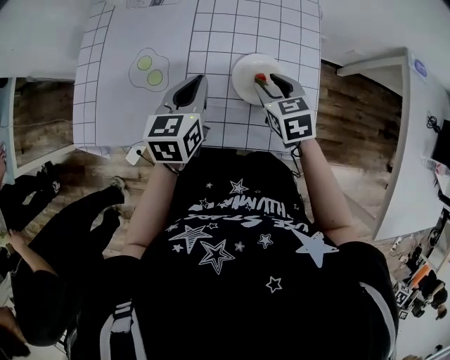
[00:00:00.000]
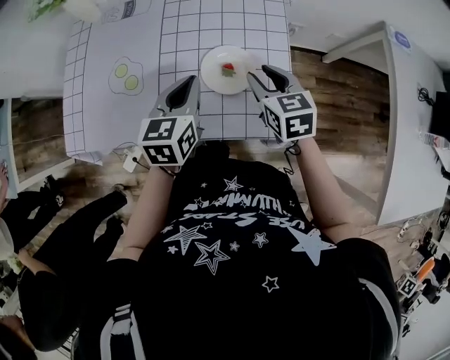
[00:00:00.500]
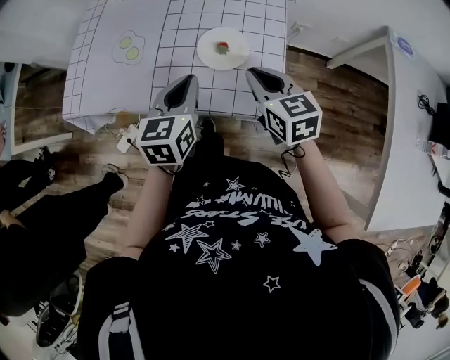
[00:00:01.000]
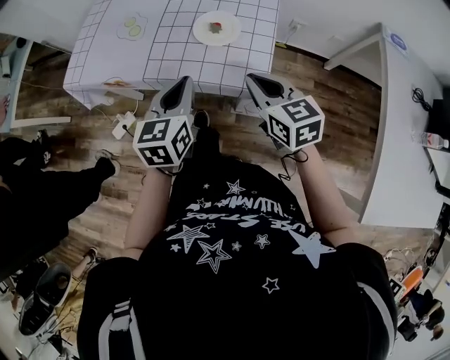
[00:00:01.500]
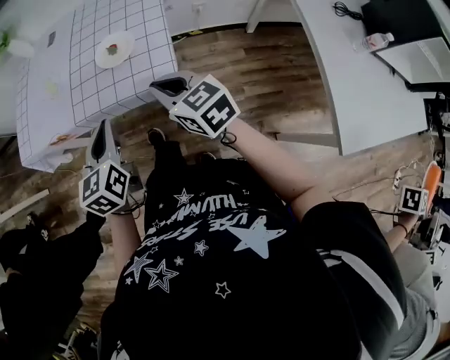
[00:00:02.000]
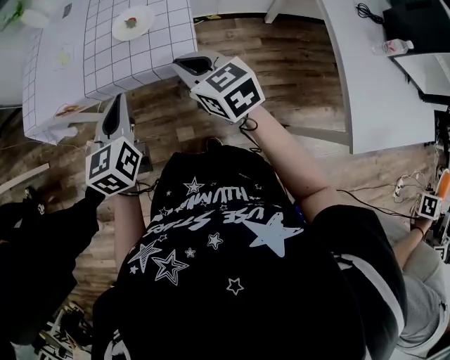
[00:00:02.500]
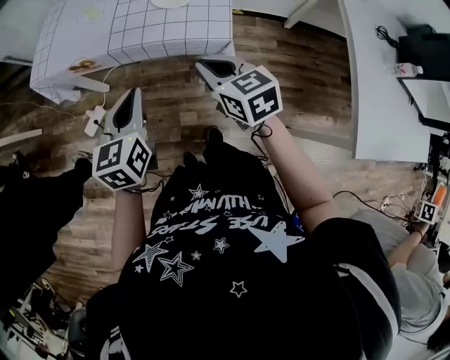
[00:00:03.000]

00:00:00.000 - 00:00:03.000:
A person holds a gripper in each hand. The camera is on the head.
00:00:00.000 - 00:00:01.500: The left gripper shifts about 20 cm backward; the right gripper is displaced backward and upward by about 25 cm, changes its angle by roughly 20 degrees, and closes up.
00:00:01.500 - 00:00:03.000: Both grippers move backward and to the left, some 15 cm.

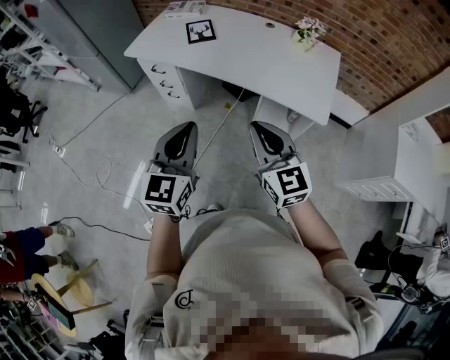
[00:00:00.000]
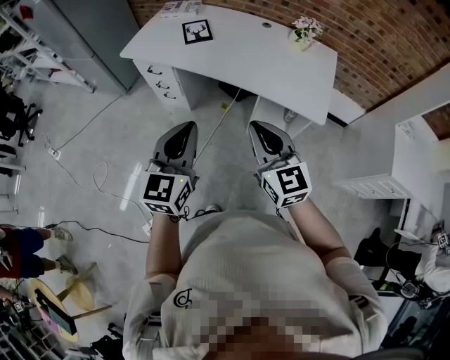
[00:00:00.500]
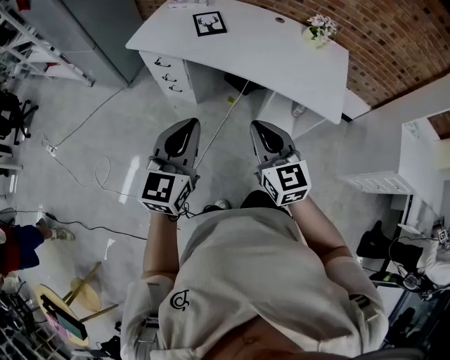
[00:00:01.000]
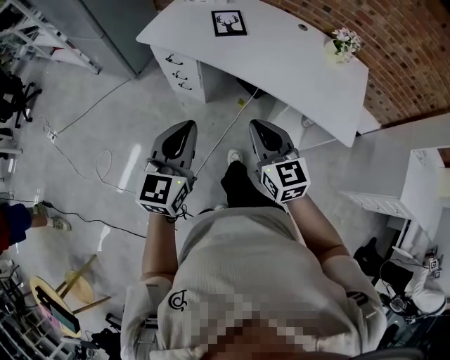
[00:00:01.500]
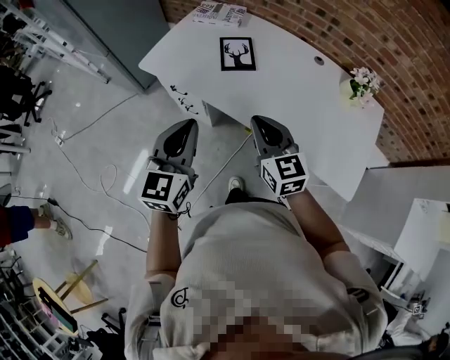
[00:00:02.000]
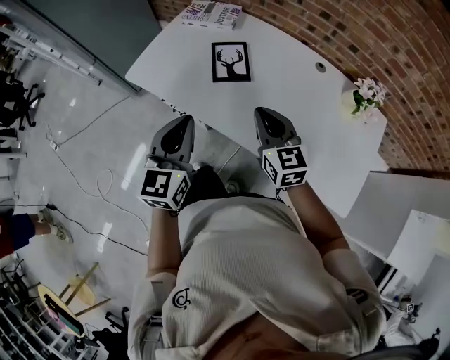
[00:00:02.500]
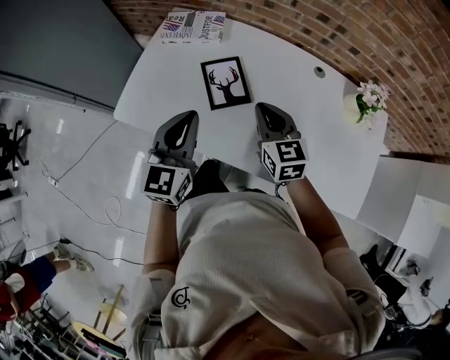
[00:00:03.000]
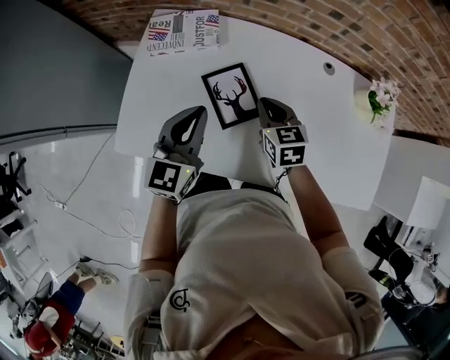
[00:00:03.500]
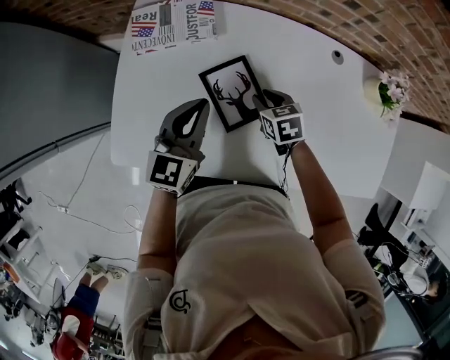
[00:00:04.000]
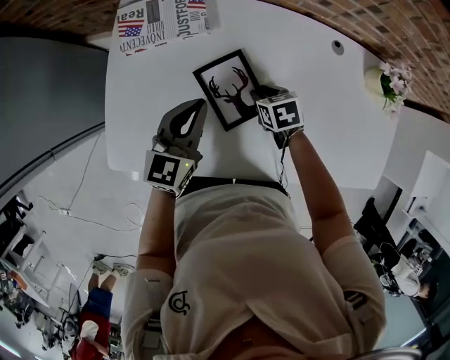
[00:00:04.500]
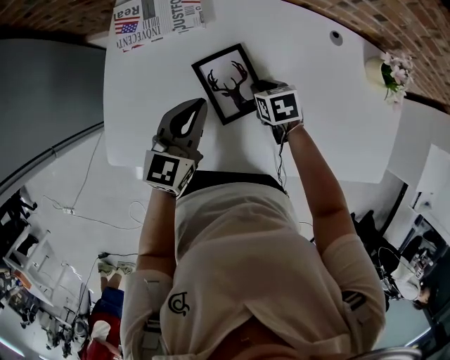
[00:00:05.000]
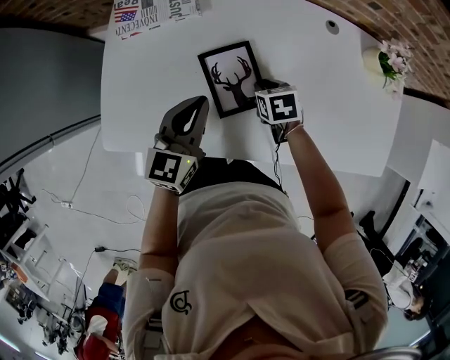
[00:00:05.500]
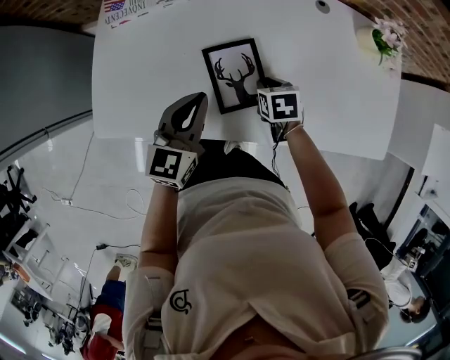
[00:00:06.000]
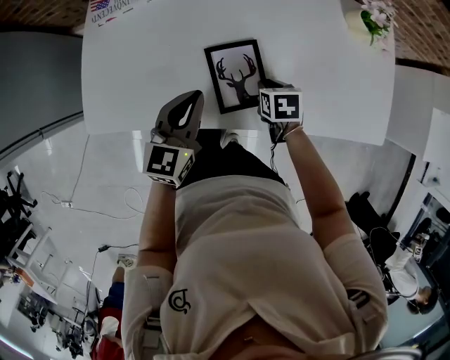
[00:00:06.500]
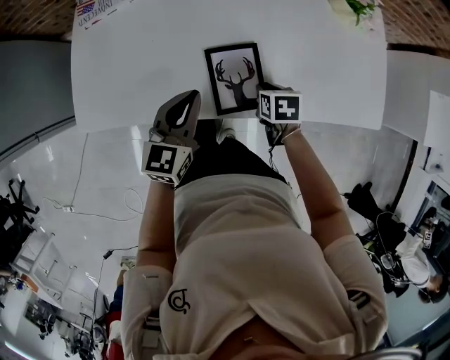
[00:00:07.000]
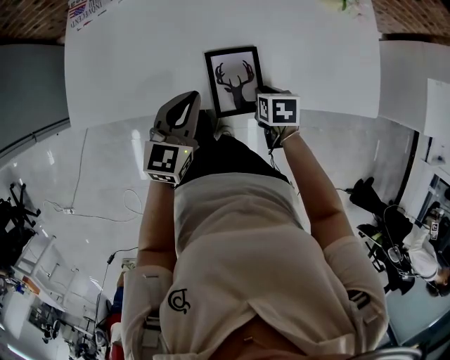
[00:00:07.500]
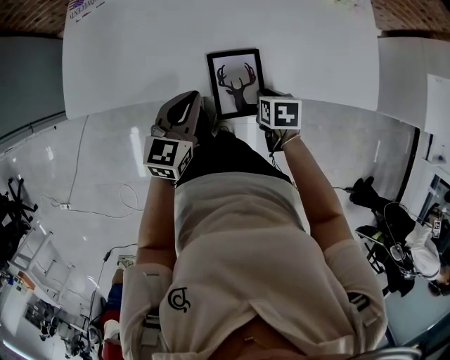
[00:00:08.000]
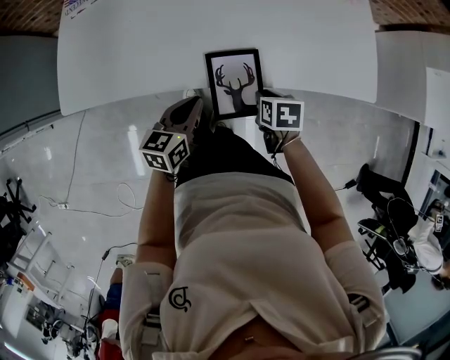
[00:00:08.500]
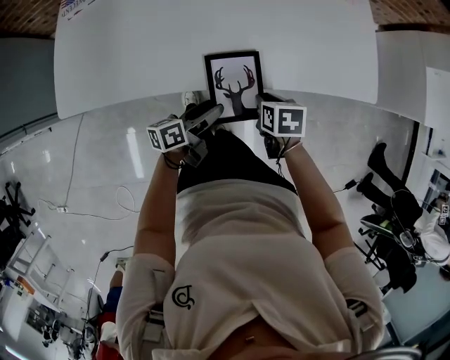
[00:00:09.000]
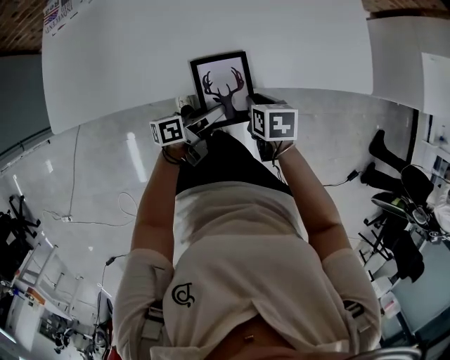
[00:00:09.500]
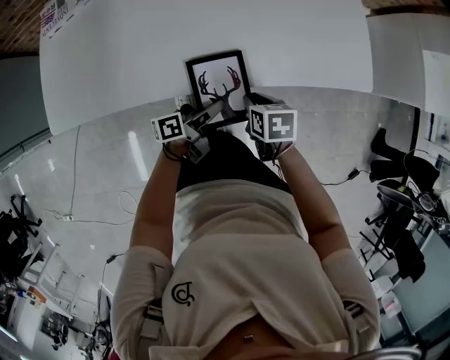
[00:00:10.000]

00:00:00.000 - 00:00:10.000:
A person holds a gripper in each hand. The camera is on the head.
00:00:00.000 - 00:00:02.000: The two grippers go roughly 30 cm forward.
00:00:02.000 - 00:00:04.000: The pair of grippers is taken forward, some 40 cm. The right gripper is displaced downward by about 25 cm, angles its fingers downward, by some 40 degrees, and opens its fingers. Meanwhile the left gripper rotates roughly 30 degrees.
00:00:04.000 - 00:00:06.000: The two grippers go some 15 cm backward and to the right.
00:00:06.000 - 00:00:08.000: Both grippers move backward and to the right, roughly 20 cm.
00:00:08.000 - 00:00:10.000: The left gripper travels to the right and downward by approximately 20 cm, rolls counterclockwise, seen from behind, by roughly 60 degrees, and opens and closes again.

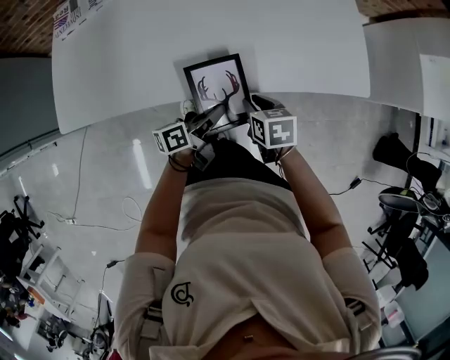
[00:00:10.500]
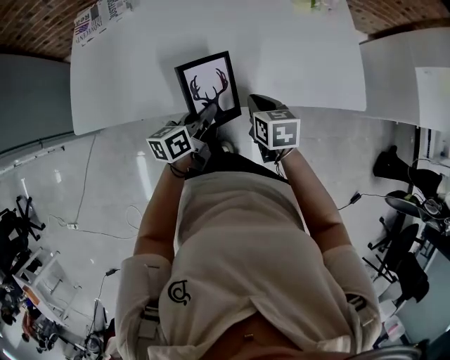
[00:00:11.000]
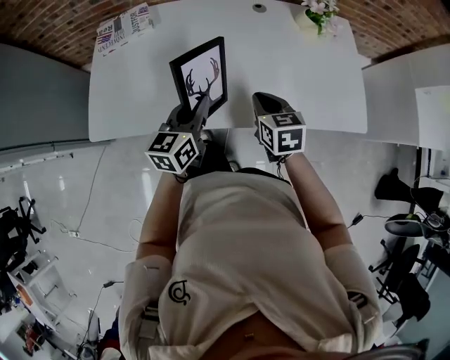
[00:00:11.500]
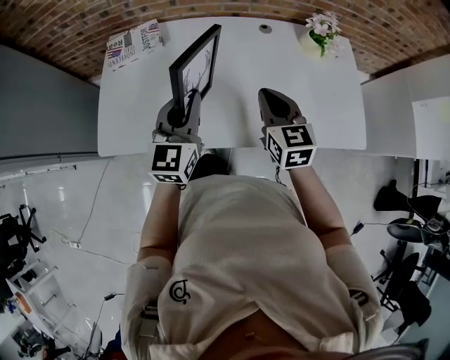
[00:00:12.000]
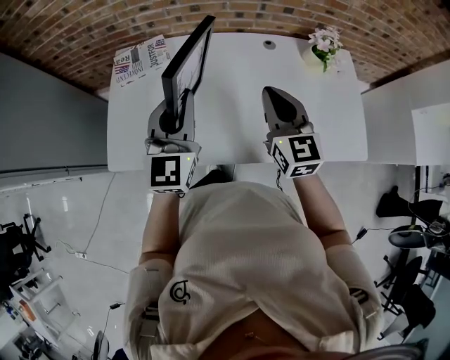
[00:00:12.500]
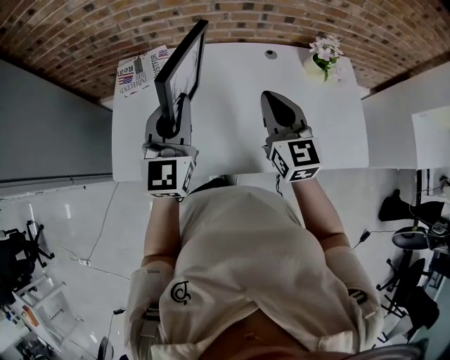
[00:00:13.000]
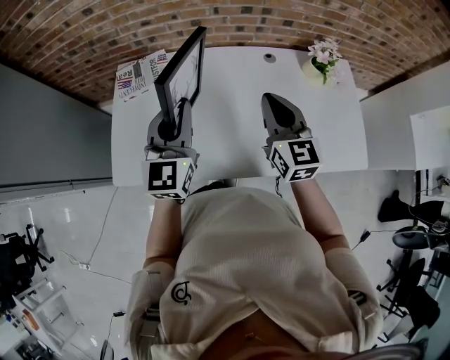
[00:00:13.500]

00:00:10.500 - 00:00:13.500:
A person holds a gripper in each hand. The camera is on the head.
00:00:10.500 - 00:00:12.000: The right gripper goes roughly 25 cm upward and forward, angles its fingers upward, by roughly 40 degrees, and closes; the left gripper shifts some 35 cm upward, to the left and forward, and twists about 70 degrees clockwise, seen from behind.
00:00:12.000 - 00:00:13.500: The left gripper travels upward, forward and to the left by roughly 10 cm; the right gripper travels upward and forward by roughly 10 cm.

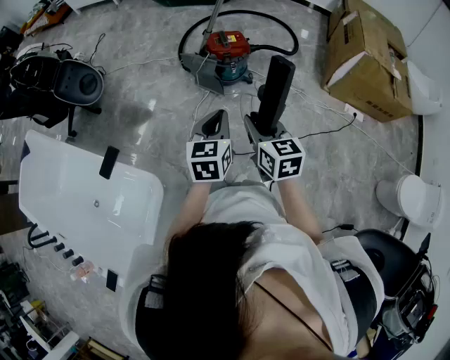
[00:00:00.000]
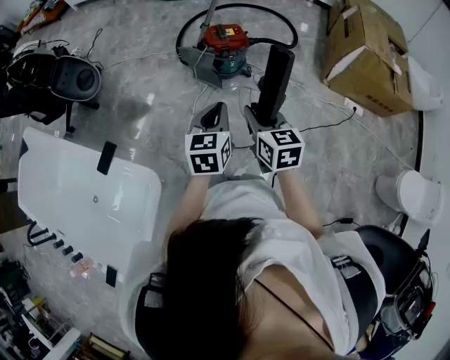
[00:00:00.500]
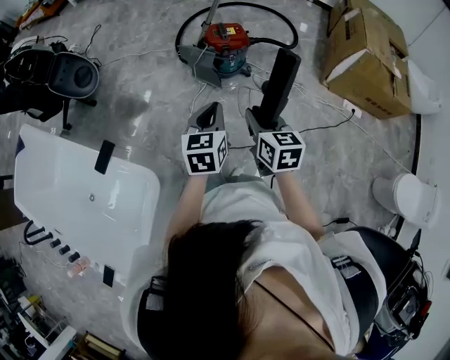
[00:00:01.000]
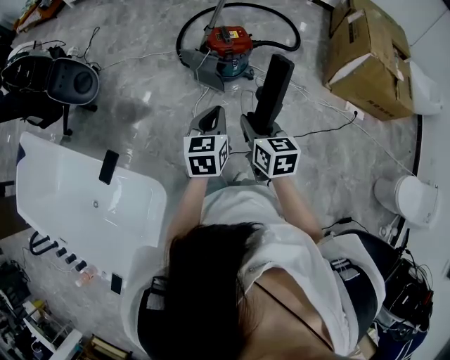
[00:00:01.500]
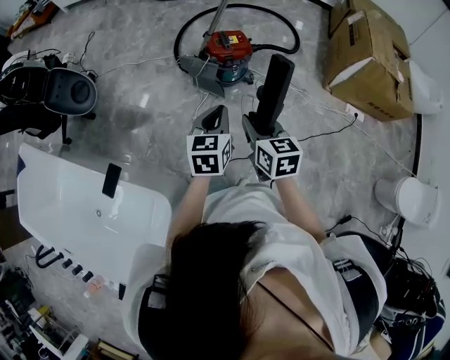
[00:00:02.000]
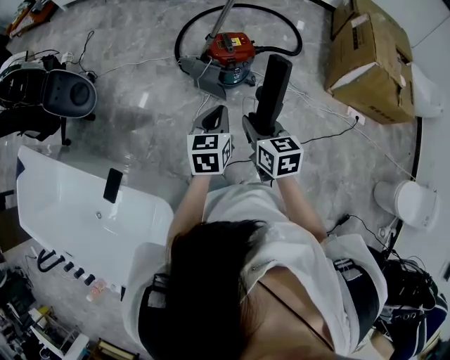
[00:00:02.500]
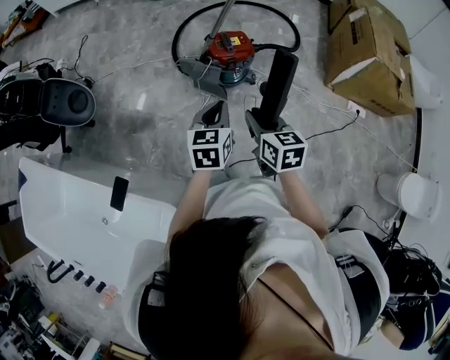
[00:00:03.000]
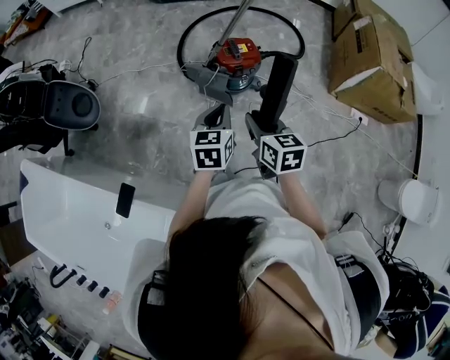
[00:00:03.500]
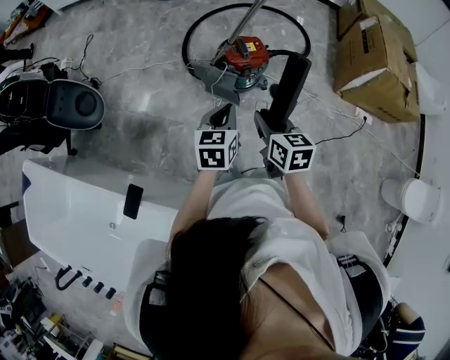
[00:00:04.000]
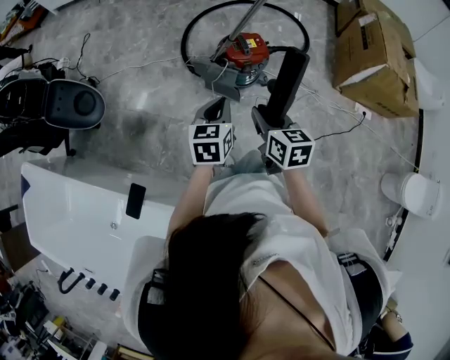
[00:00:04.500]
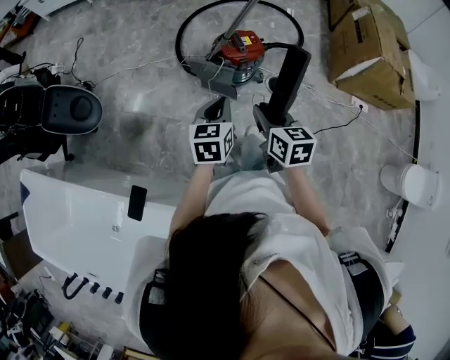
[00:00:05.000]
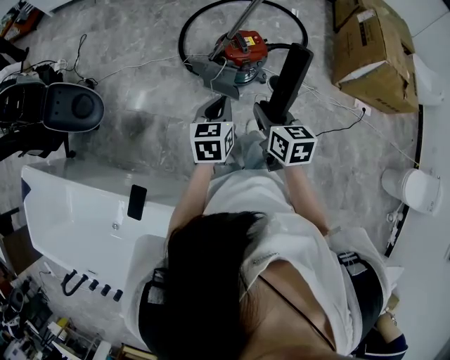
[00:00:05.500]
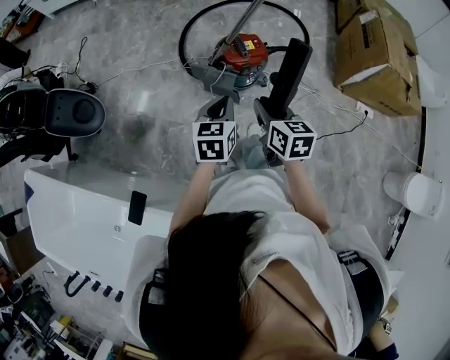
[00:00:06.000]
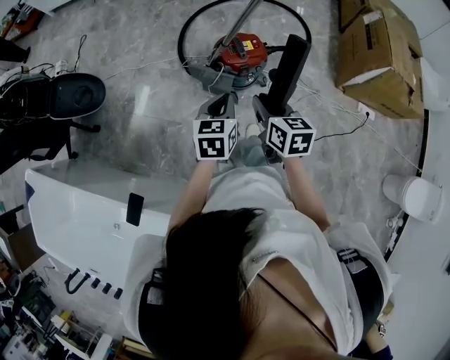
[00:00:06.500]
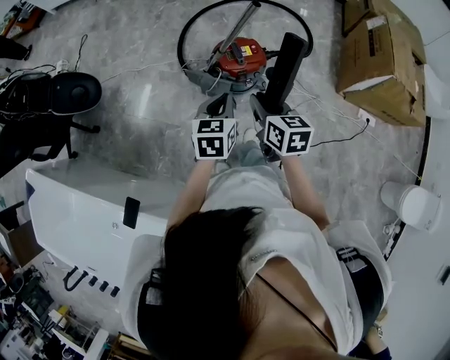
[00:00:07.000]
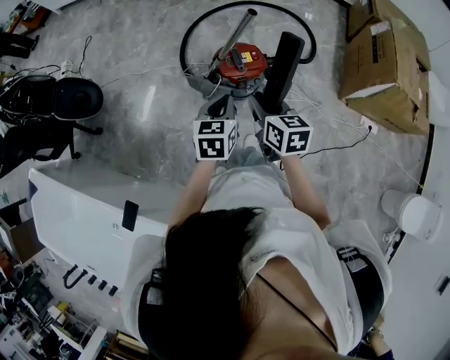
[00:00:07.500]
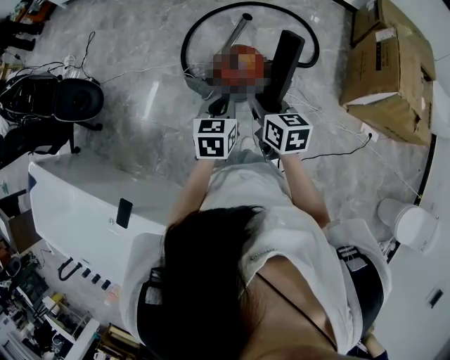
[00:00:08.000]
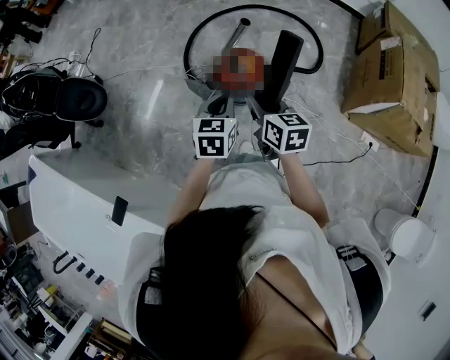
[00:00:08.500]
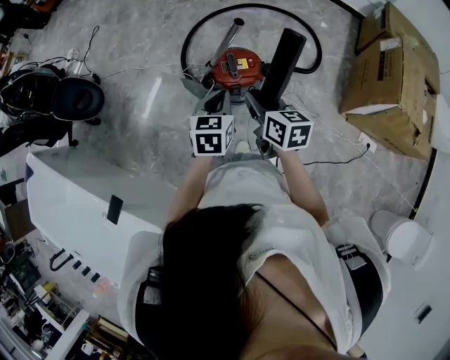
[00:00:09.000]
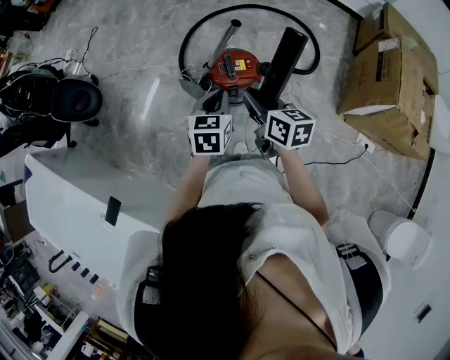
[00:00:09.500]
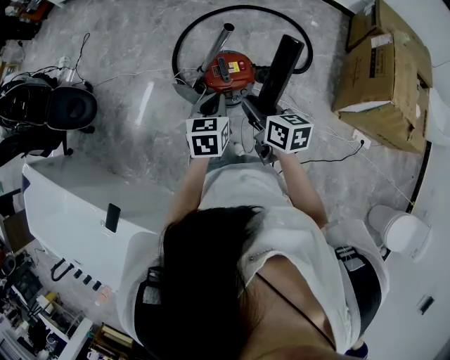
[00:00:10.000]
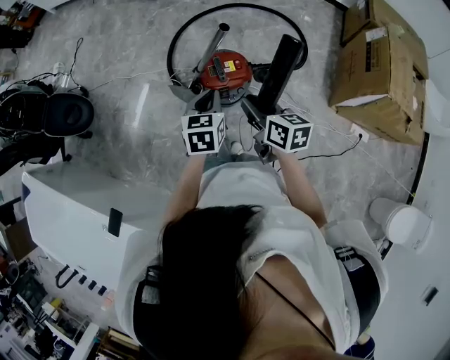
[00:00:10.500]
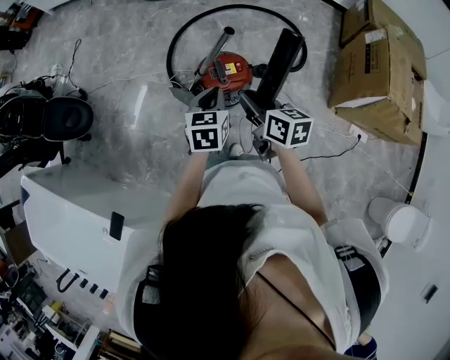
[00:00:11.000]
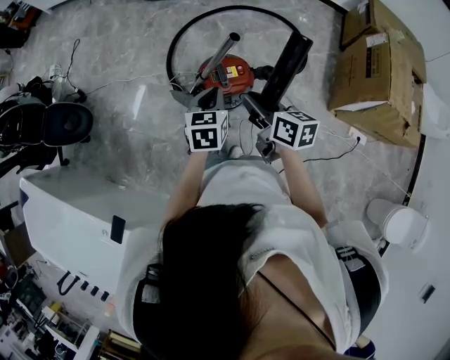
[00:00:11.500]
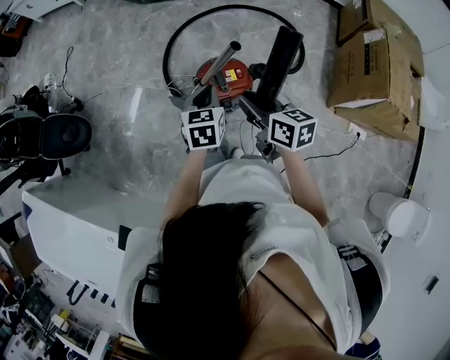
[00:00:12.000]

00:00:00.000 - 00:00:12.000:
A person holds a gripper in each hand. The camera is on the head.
00:00:00.000 - 00:00:02.000: Both grippers travel together forward, approximately 10 cm.
00:00:02.000 - 00:00:04.000: The two grippers go about 15 cm forward and to the left.
00:00:04.000 - 00:00:06.000: The right gripper goes some 5 cm forward.
00:00:06.000 - 00:00:08.000: The grippers both shift forward and to the right by some 15 cm.
00:00:08.000 - 00:00:10.000: The left gripper moves approximately 5 cm.
00:00:10.000 - 00:00:12.000: Both grippers move forward, roughly 10 cm.
